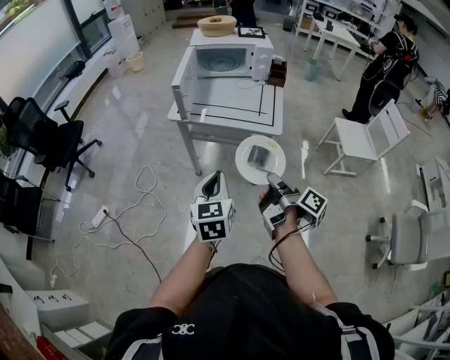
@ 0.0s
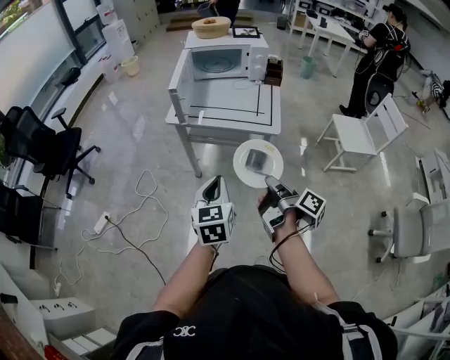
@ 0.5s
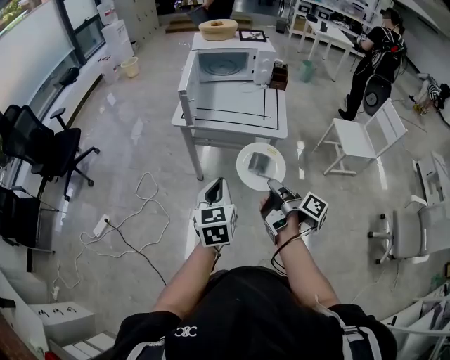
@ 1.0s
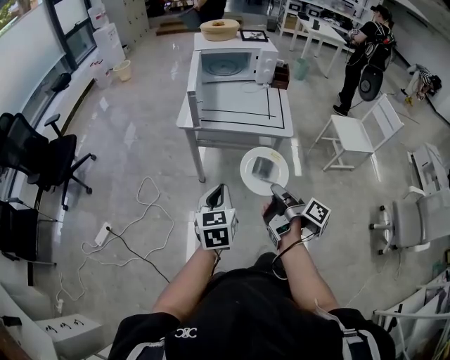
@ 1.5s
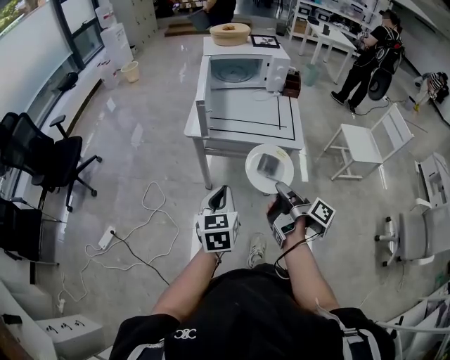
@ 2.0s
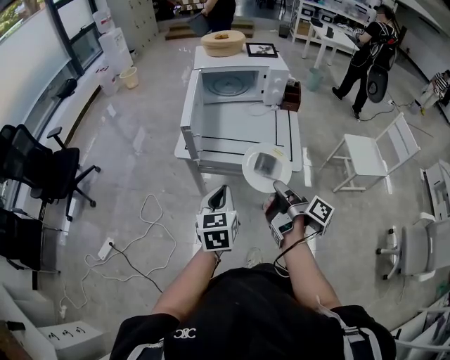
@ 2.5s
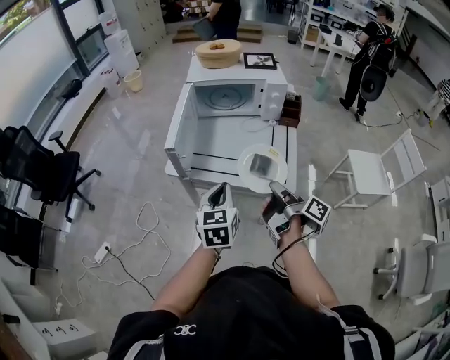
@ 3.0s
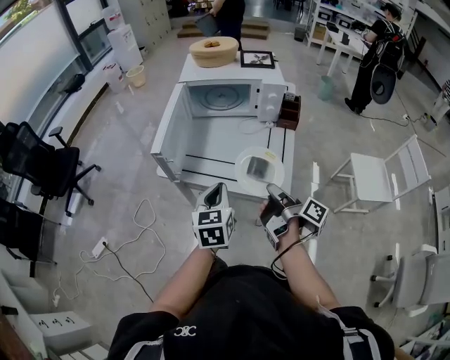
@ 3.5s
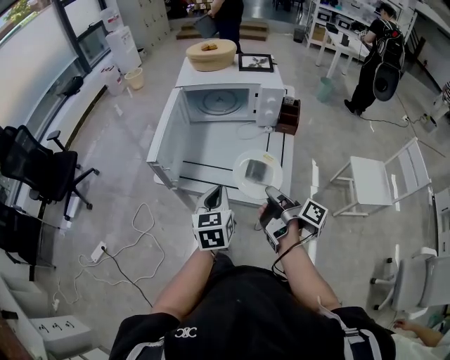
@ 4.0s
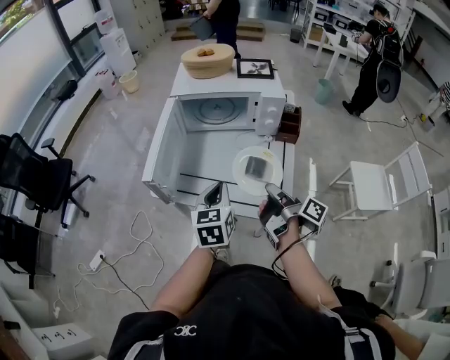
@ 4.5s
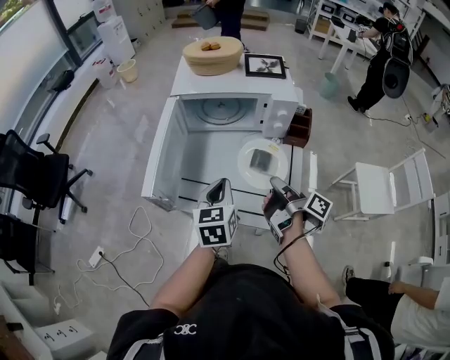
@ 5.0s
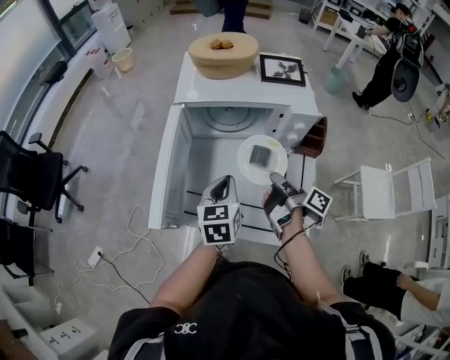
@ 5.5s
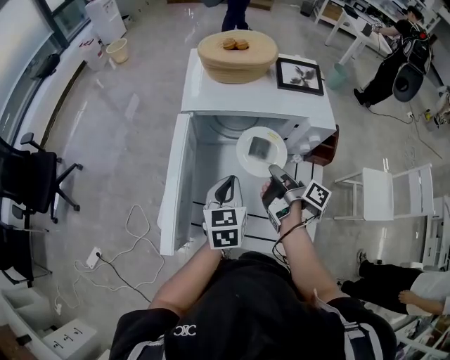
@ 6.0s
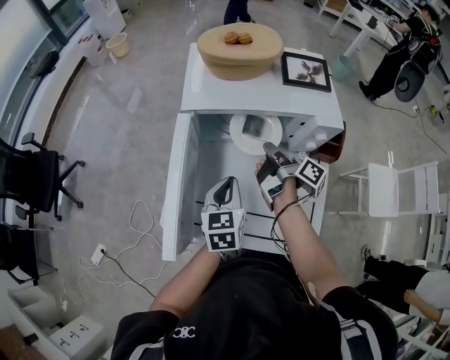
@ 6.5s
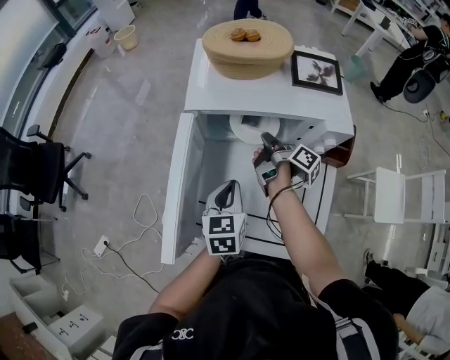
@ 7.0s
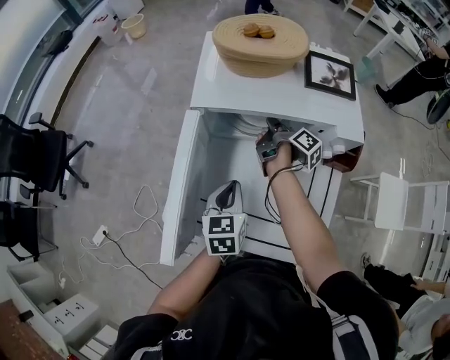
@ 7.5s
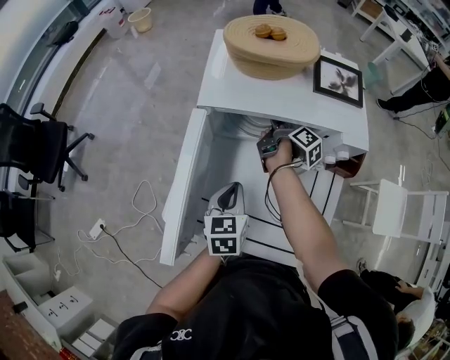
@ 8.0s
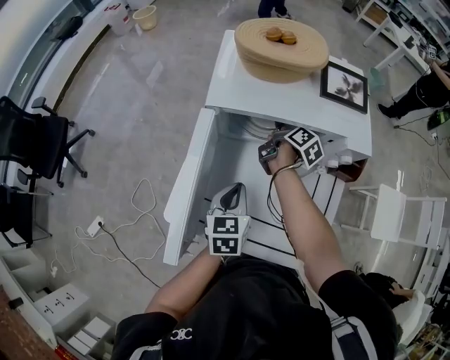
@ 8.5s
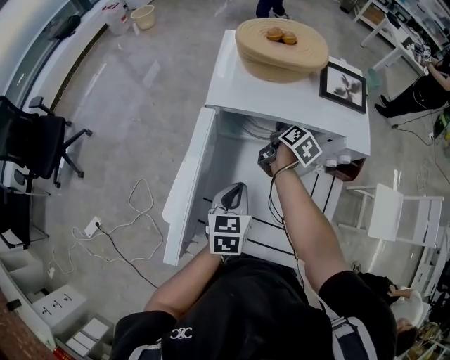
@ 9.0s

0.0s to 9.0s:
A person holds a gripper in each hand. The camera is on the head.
0.0s to 2.0s: The left gripper moves some 15 cm.
2.0s to 4.5s: The left gripper shifts by approximately 35 cm.
4.5s to 7.0s: The left gripper shifts by about 20 cm.

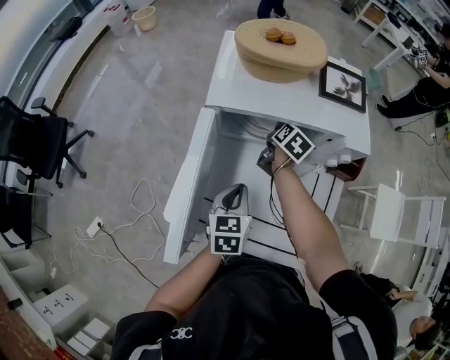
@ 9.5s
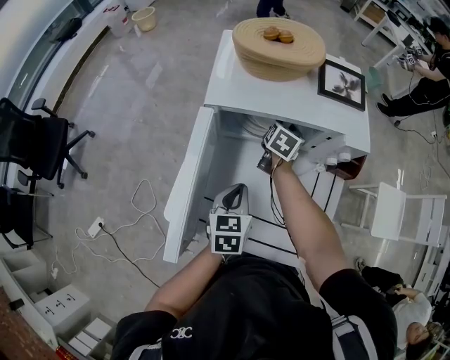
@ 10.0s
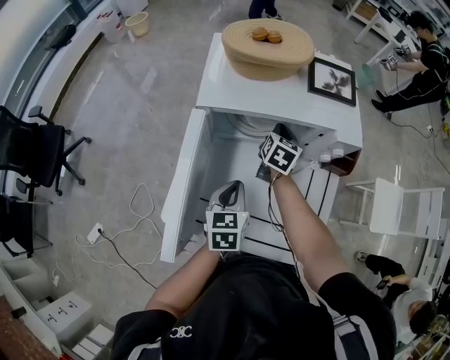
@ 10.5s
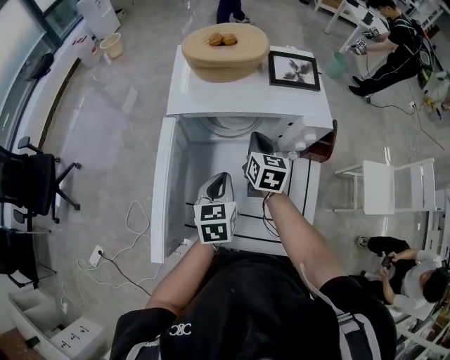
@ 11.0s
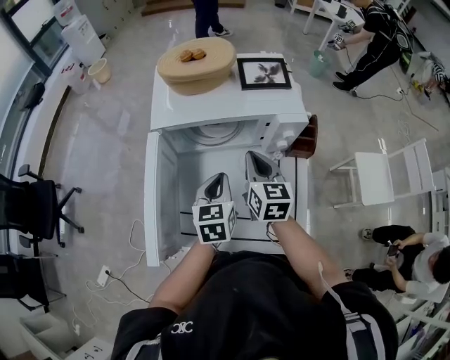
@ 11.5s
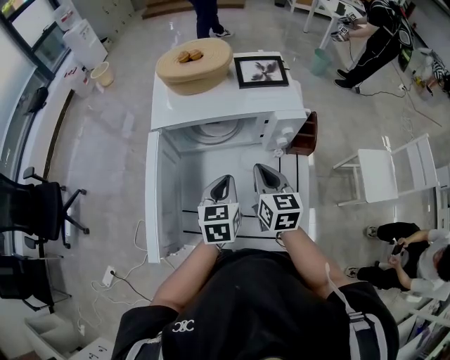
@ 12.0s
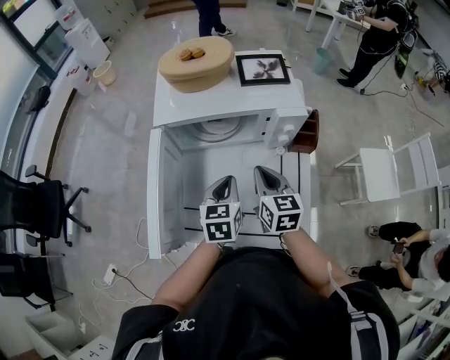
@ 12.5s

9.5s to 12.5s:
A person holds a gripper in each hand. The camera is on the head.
11.0s to 12.5s: The left gripper ends up roughly 5 cm from where it was.

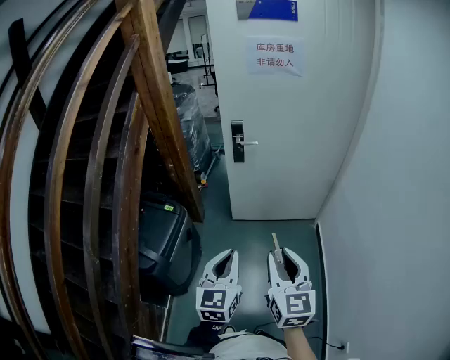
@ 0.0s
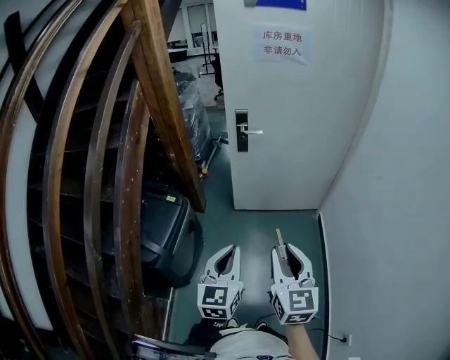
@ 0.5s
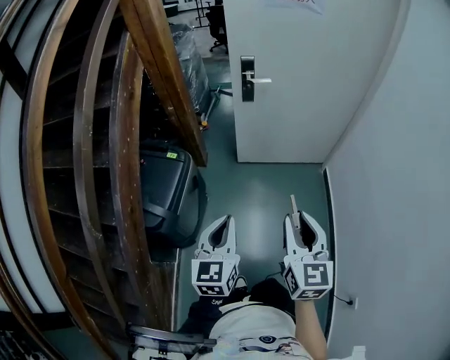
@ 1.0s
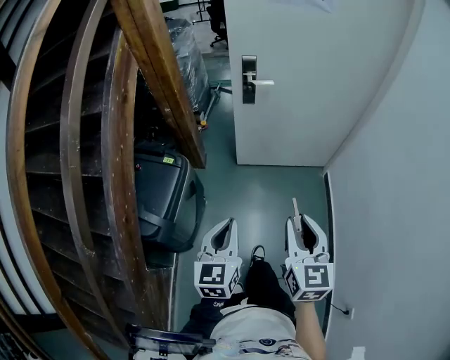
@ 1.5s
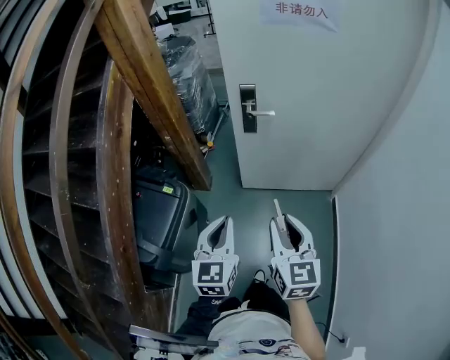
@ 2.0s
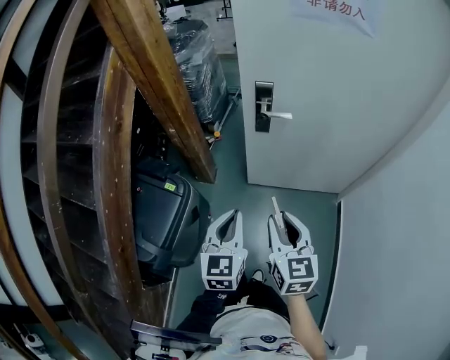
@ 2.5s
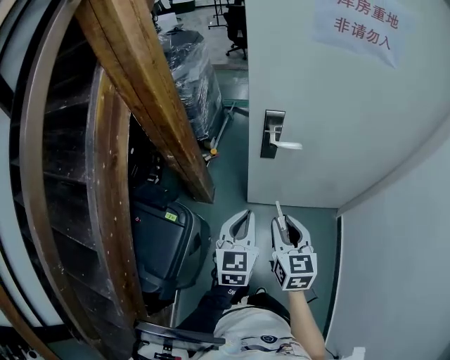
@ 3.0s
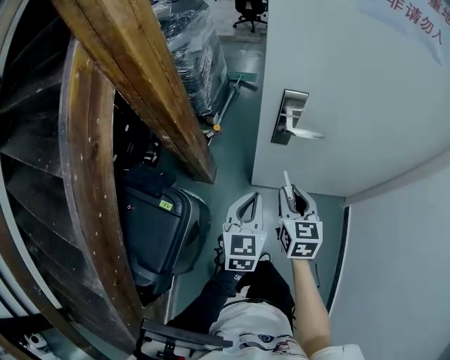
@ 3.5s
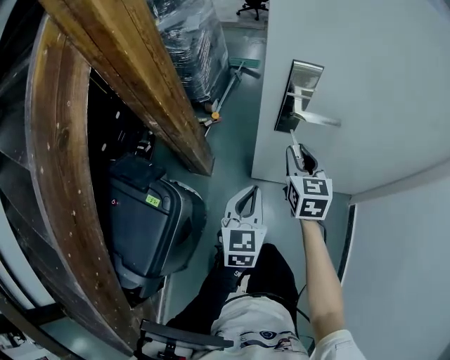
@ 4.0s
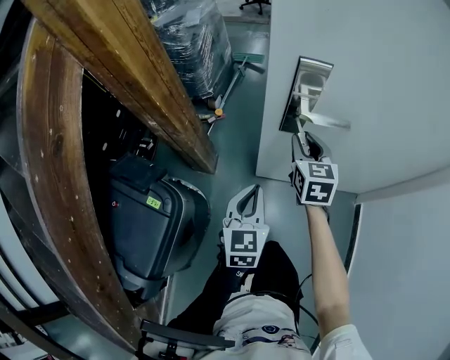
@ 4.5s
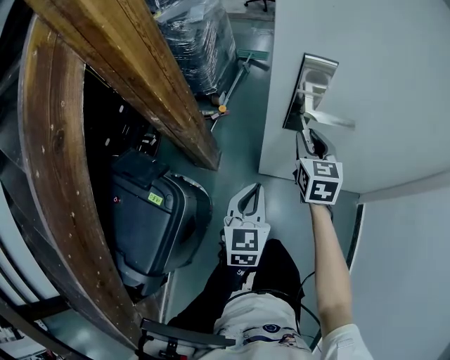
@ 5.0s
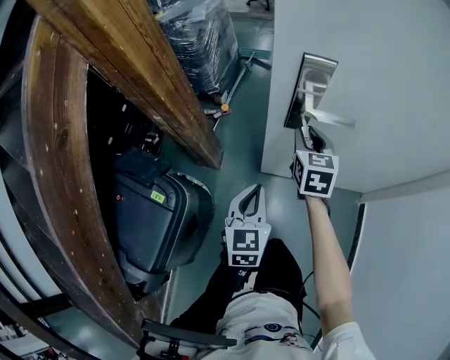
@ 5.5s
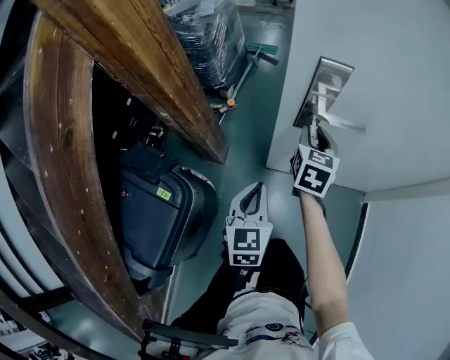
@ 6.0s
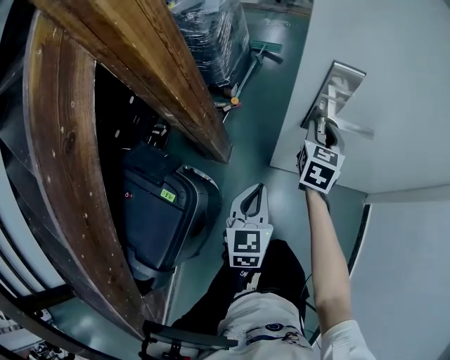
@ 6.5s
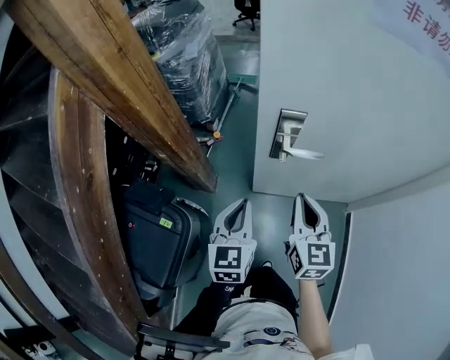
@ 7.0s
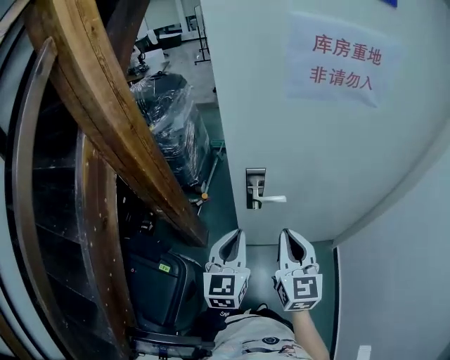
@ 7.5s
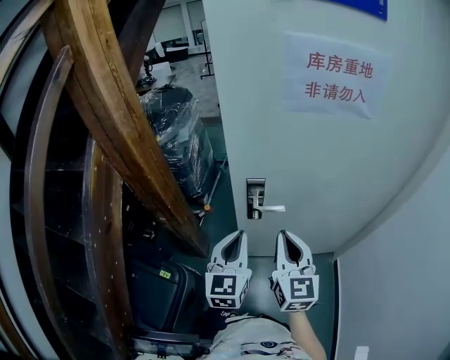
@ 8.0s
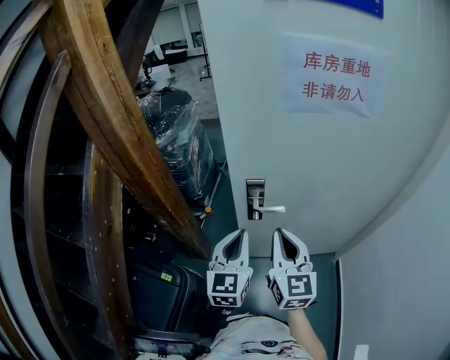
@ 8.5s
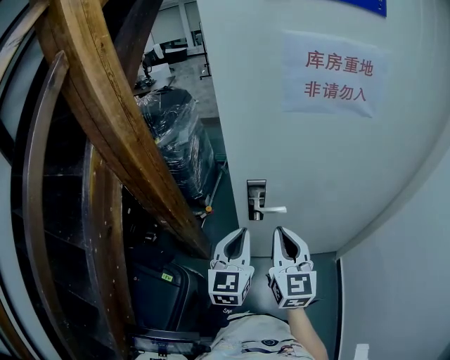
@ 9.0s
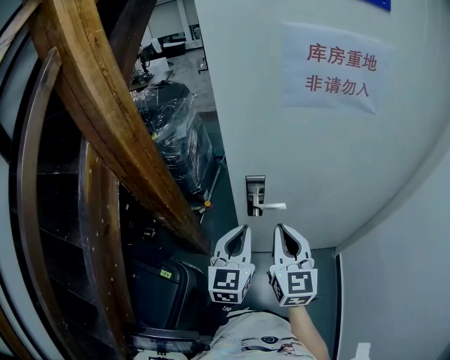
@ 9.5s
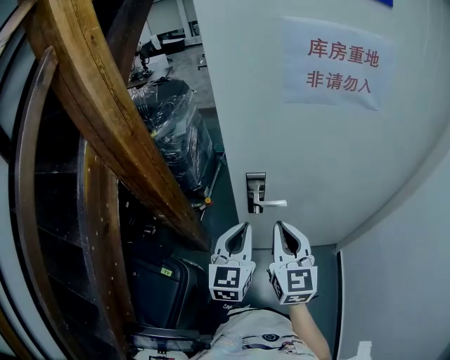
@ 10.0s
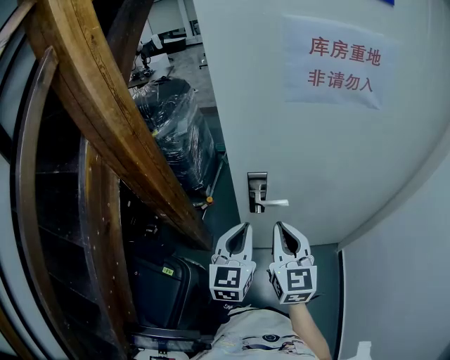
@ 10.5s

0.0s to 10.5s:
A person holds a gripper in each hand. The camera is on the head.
0.0s to 2.0s: The two grippers go approximately 20 cm forward.
2.0s to 4.0s: The two grippers go about 40 cm forward and downward.
4.0s to 6.5s: The left gripper changes place by roughly 5 cm. Meanwhile the right gripper heads forward, covering about 10 cm.
6.5s to 8.5s: The left gripper travels upward by about 30 cm, and rotates approximately 20 degrees. Meanwhile the right gripper is displaced upward and backward by some 35 cm, rotates approximately 30 degrees, and closes.
8.5s to 10.5s: The grippers make only small movements.

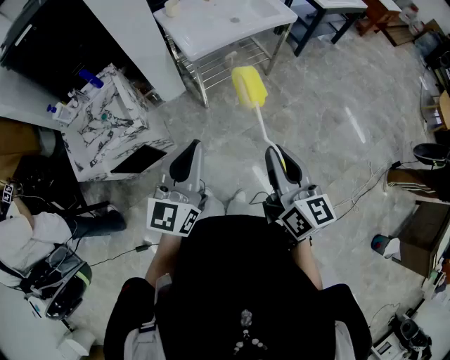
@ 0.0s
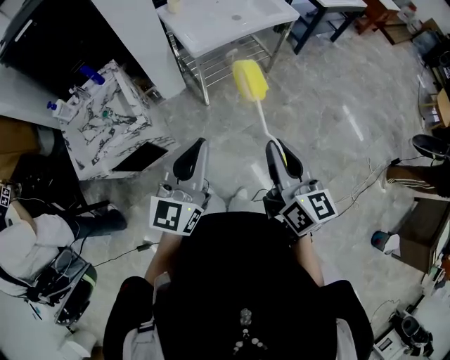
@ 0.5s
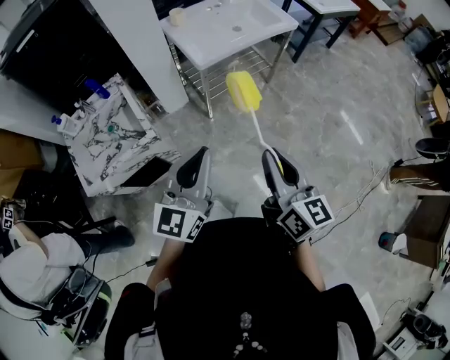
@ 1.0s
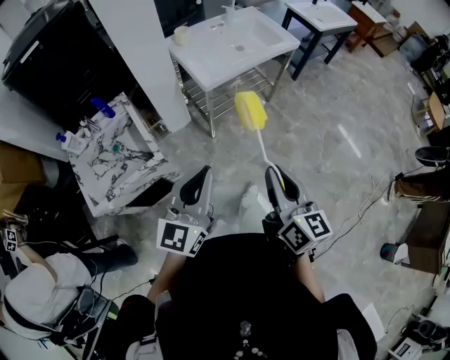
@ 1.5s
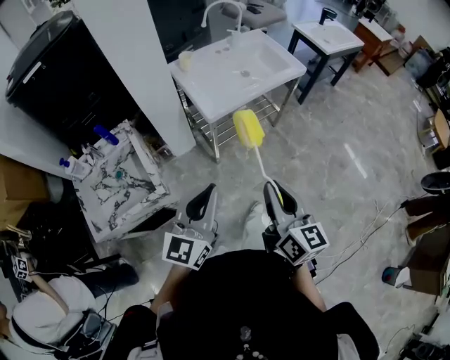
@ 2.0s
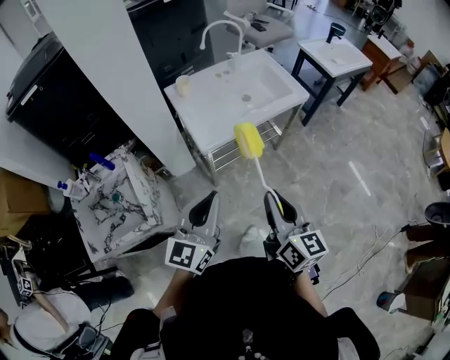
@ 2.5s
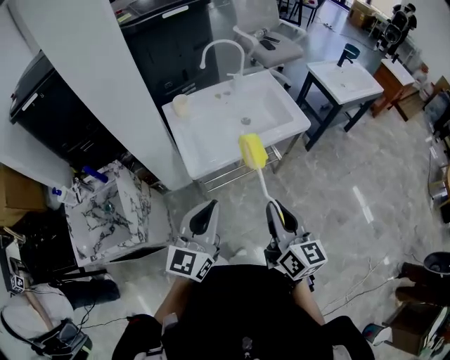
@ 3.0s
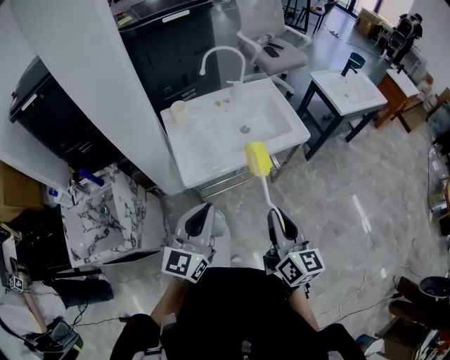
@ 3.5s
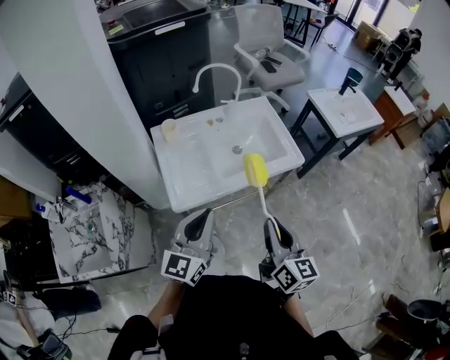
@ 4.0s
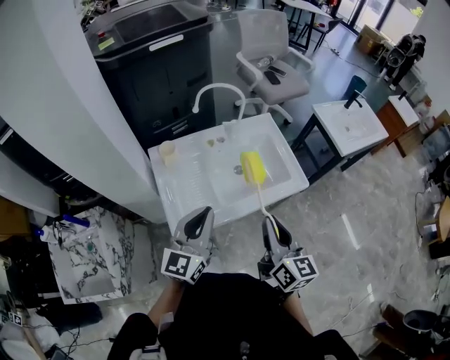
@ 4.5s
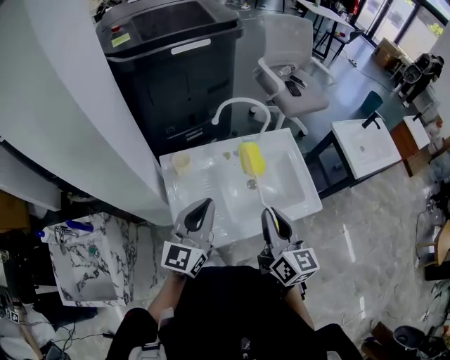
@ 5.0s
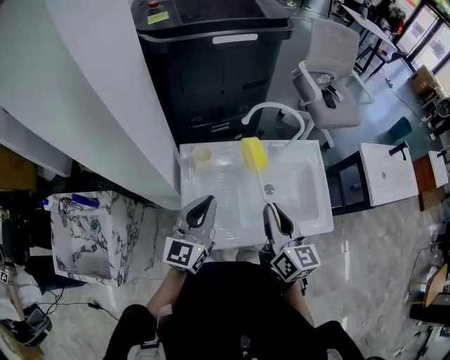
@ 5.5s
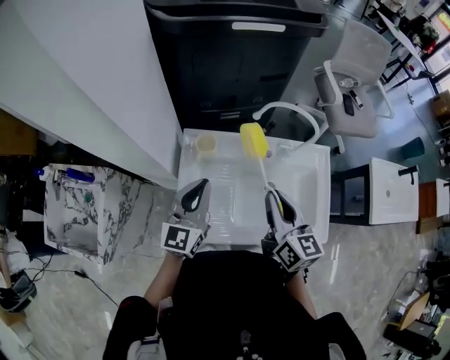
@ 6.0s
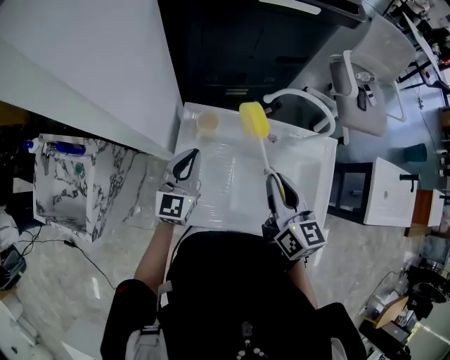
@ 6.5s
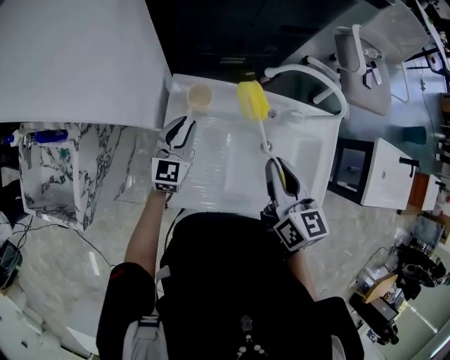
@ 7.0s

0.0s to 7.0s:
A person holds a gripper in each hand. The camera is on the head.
0.0s to 2.0s: Both grippers move forward and to the left, approximately 15 cm.
2.0s to 3.5s: The two grippers go about 30 cm forward and to the right.
3.5s to 5.0s: Both grippers move forward, roughly 30 cm.
5.0s to 7.0s: The right gripper ends up approximately 20 cm from where it was, and rotates some 30 degrees, while the left gripper shifts about 25 cm downward, and swivels roughly 30 degrees.
